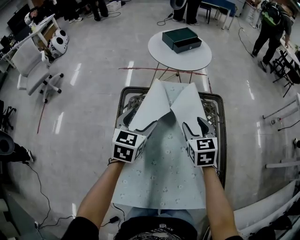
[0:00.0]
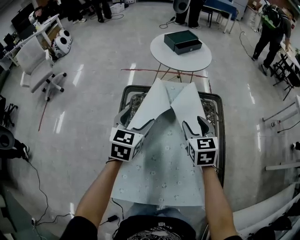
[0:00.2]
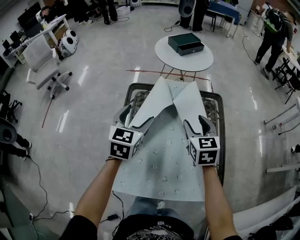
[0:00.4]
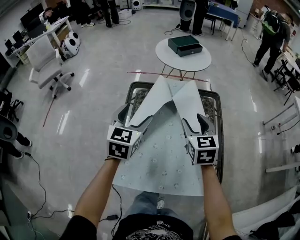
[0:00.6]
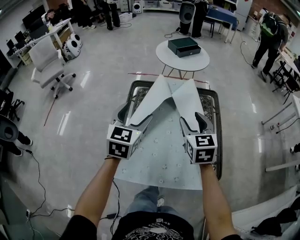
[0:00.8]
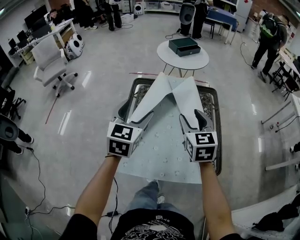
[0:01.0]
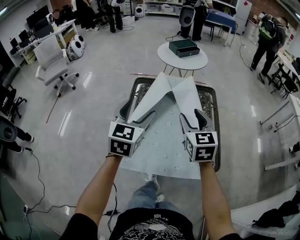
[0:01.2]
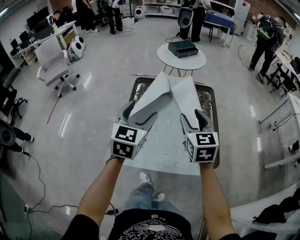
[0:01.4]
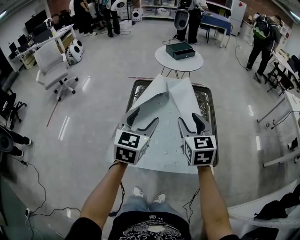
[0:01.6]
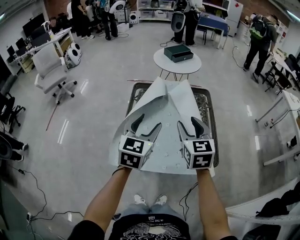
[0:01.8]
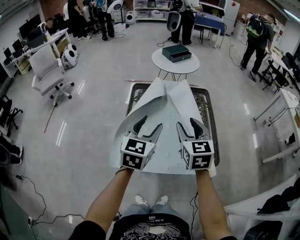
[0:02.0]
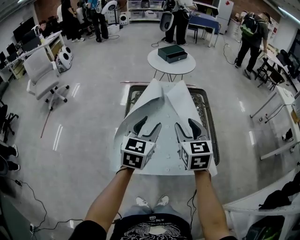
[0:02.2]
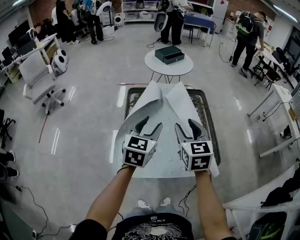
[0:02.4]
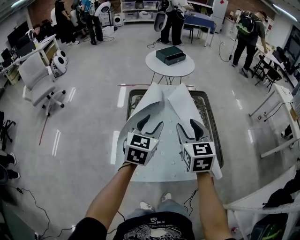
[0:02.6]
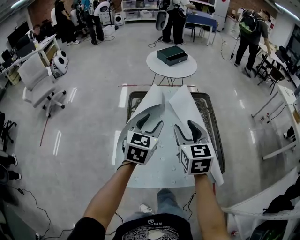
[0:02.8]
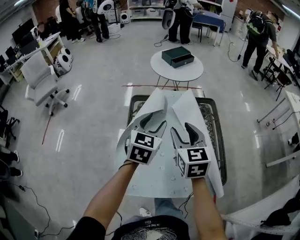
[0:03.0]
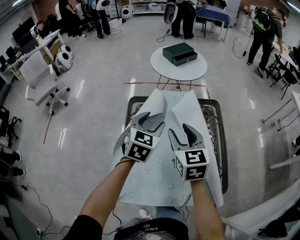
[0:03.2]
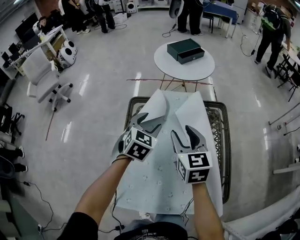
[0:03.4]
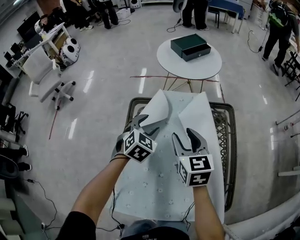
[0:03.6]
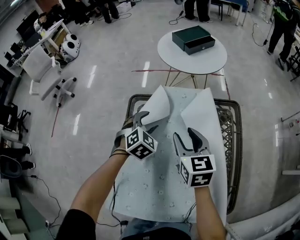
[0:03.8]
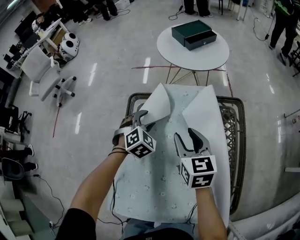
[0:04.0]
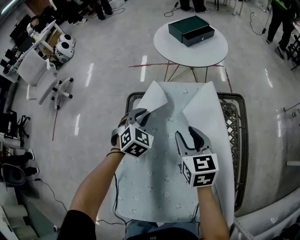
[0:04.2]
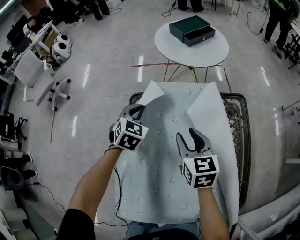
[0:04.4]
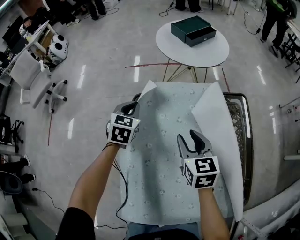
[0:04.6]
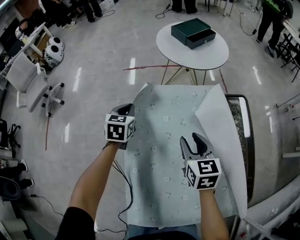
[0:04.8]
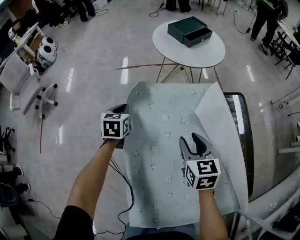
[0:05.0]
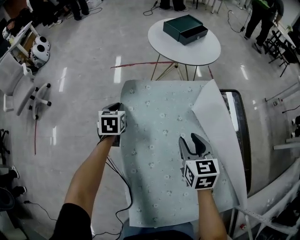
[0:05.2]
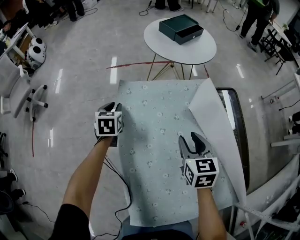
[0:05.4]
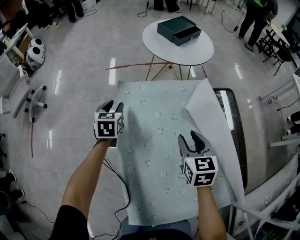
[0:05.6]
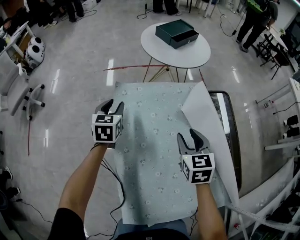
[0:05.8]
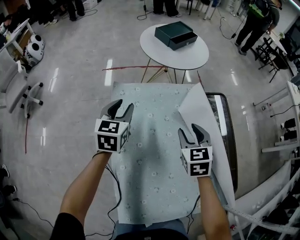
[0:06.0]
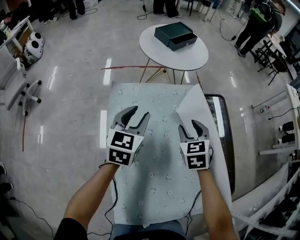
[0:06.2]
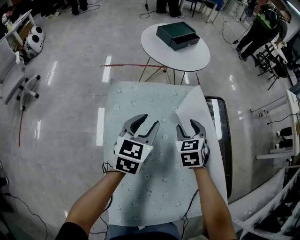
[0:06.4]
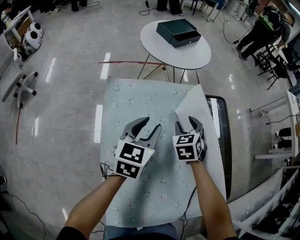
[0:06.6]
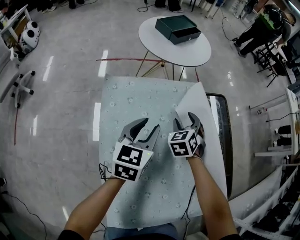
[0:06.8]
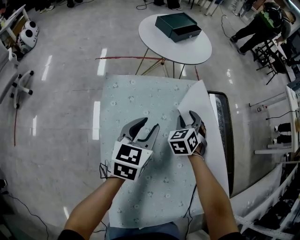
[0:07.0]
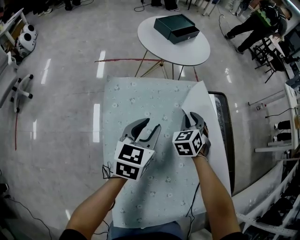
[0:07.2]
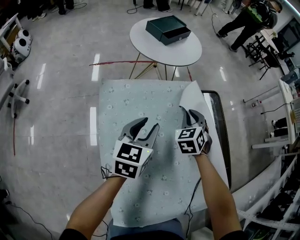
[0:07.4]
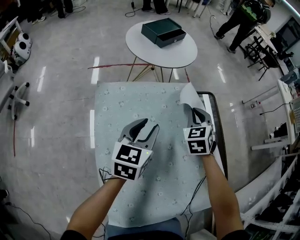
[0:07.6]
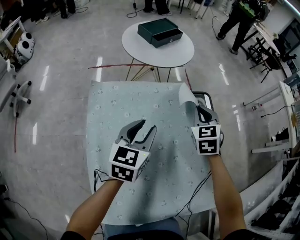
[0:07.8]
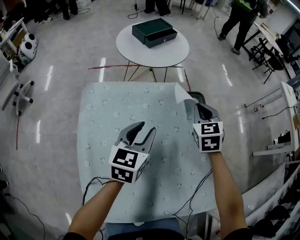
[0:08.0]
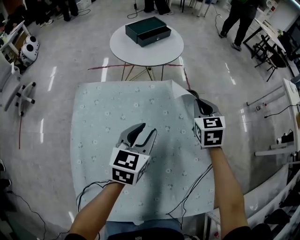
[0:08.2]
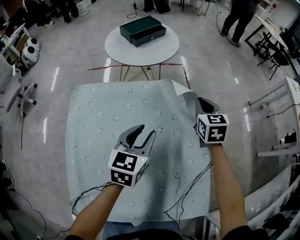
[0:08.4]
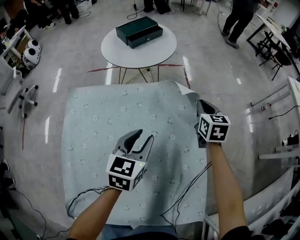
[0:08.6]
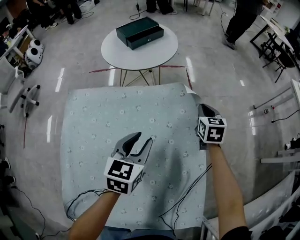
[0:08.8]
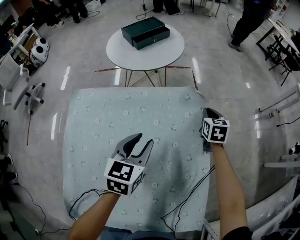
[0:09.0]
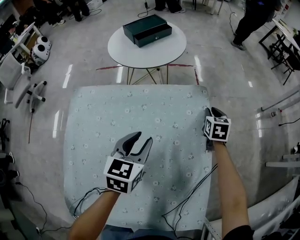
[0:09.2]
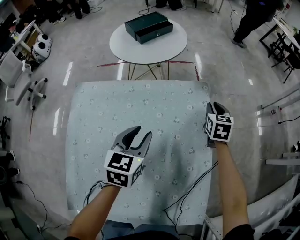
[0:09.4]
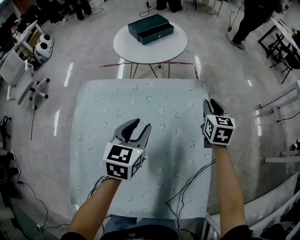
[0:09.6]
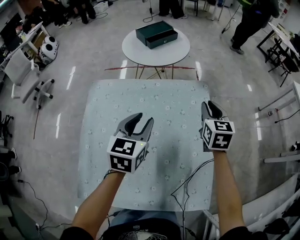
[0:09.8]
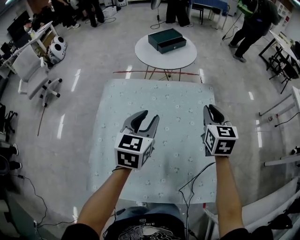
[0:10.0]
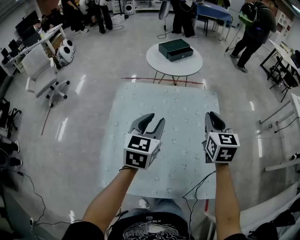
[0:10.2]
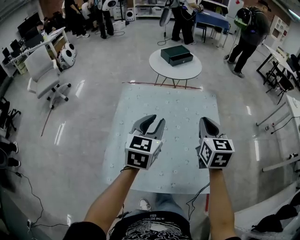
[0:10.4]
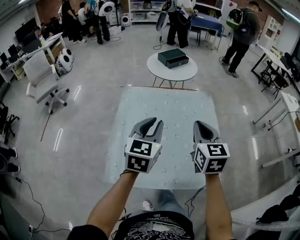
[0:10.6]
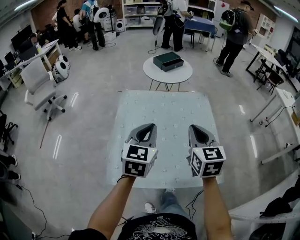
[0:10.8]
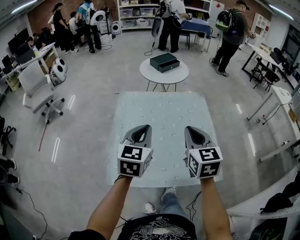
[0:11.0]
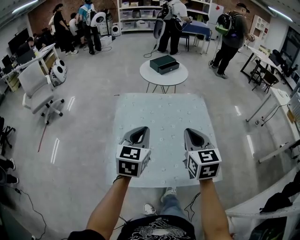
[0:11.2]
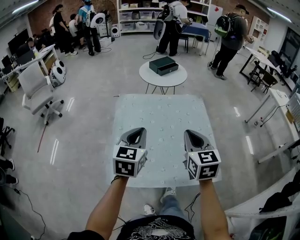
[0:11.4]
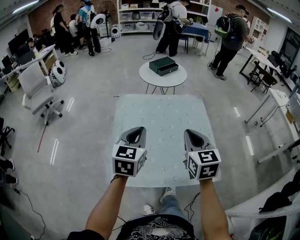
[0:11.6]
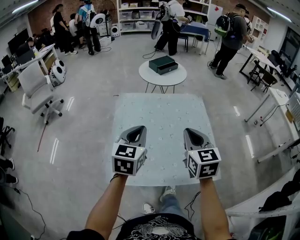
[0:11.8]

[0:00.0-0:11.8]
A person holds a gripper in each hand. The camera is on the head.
0:00.0 to 0:01.4: Both grippers move backward and upward, roughly 30 cm.
0:01.4 to 0:03.0: The left gripper shifts about 15 cm forward, while the right gripper shifts about 10 cm forward and to the left.
0:03.0 to 0:04.4: The right gripper travels downward and forward by approximately 25 cm; the left gripper is displaced forward and downward by roughly 30 cm, turns by some 20 degrees, and closes.
0:04.4 to 0:06.0: The right gripper swivels approximately 20 degrees. Meanwhile the left gripper shifts about 10 cm to the left and upward, turns by about 30 degrees, and opens up.
0:06.0 to 0:07.4: The left gripper shifts approximately 15 cm to the right. The right gripper is displaced forward by about 10 cm, rotates roughly 30 degrees, and closes.
0:07.4 to 0:08.8: The right gripper is displaced to the right and forward by roughly 35 cm, and changes its angle by some 30 degrees, while the left gripper shifts some 25 cm to the right.
0:08.8 to 0:10.4: Both grippers move backward, upward and to the left, roughly 40 cm.
0:10.4 to 0:11.8: The right gripper heads backward and to the left, covering some 15 cm. Meanwhile the left gripper moves backward, about 10 cm.

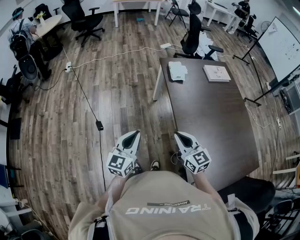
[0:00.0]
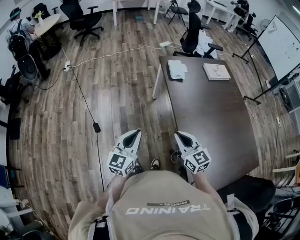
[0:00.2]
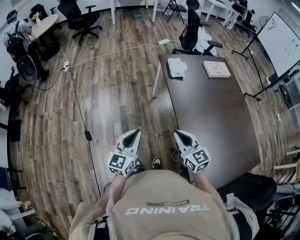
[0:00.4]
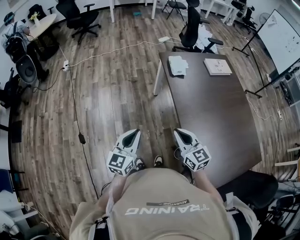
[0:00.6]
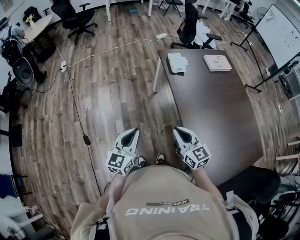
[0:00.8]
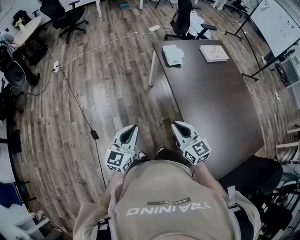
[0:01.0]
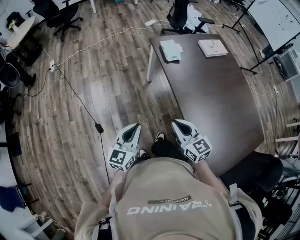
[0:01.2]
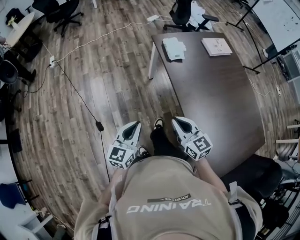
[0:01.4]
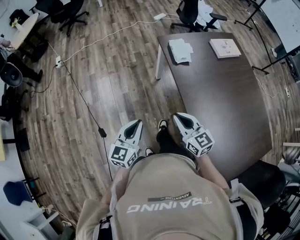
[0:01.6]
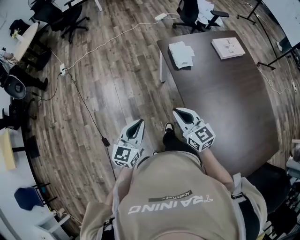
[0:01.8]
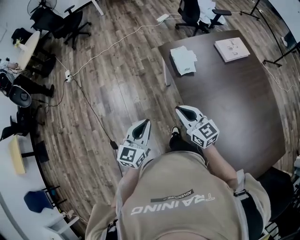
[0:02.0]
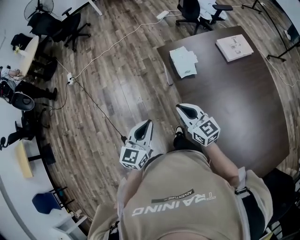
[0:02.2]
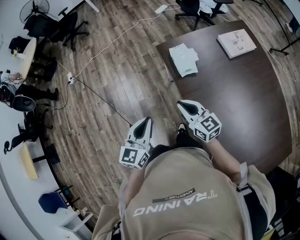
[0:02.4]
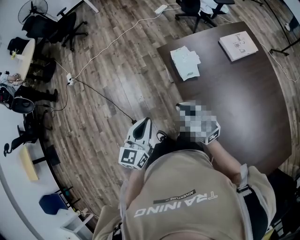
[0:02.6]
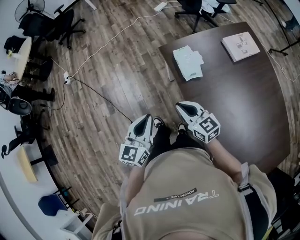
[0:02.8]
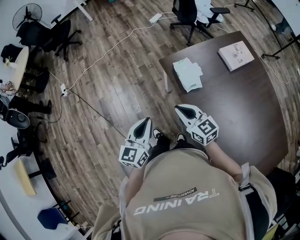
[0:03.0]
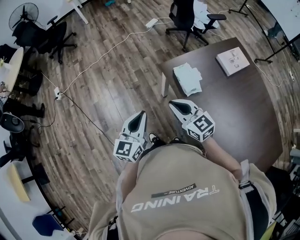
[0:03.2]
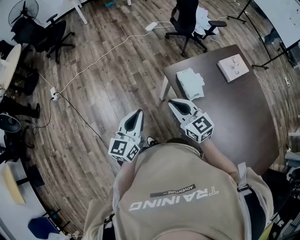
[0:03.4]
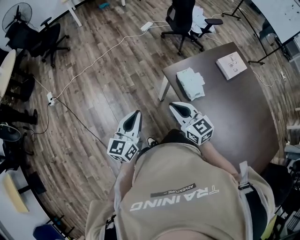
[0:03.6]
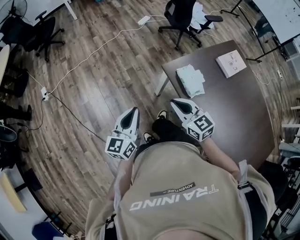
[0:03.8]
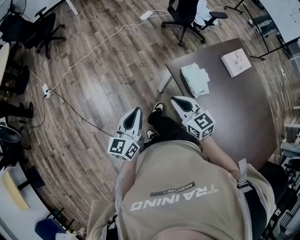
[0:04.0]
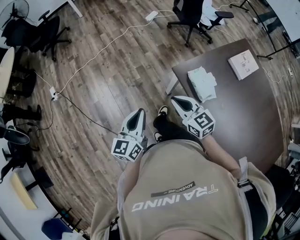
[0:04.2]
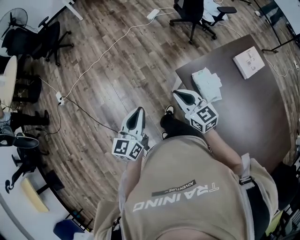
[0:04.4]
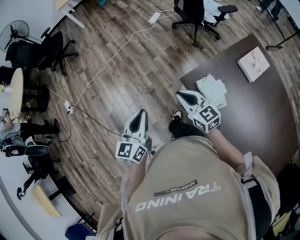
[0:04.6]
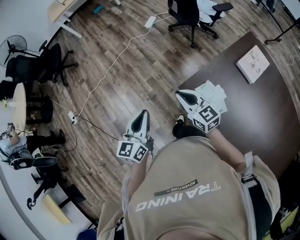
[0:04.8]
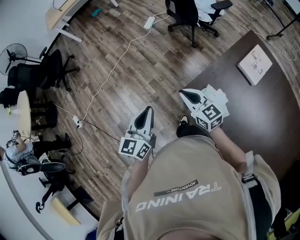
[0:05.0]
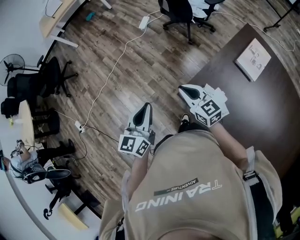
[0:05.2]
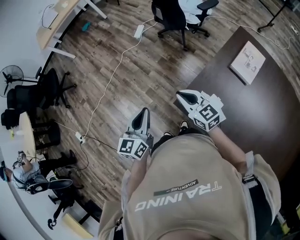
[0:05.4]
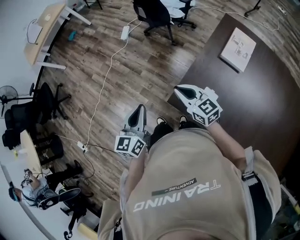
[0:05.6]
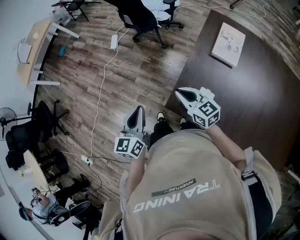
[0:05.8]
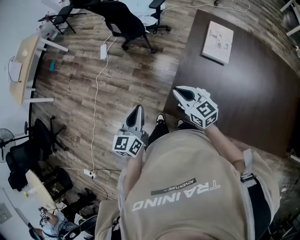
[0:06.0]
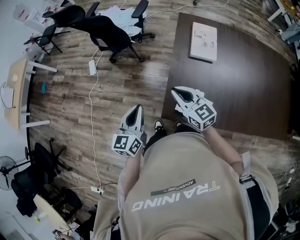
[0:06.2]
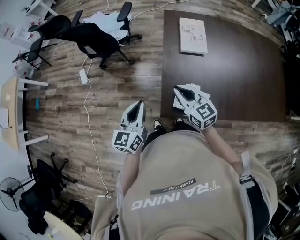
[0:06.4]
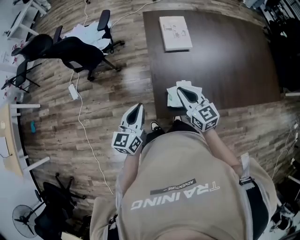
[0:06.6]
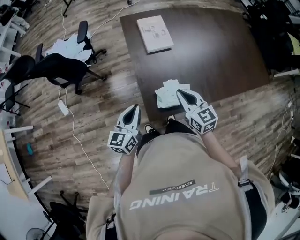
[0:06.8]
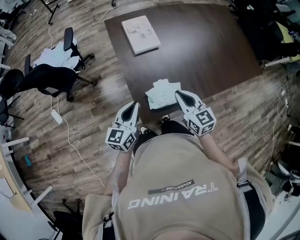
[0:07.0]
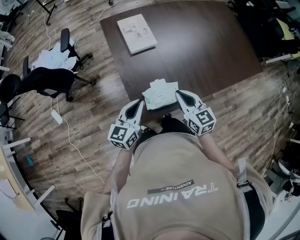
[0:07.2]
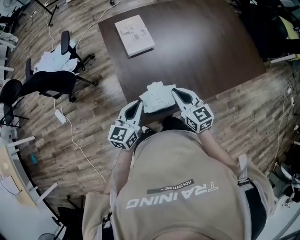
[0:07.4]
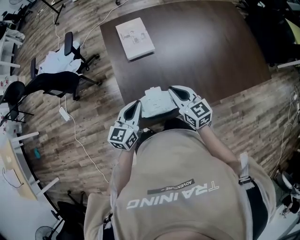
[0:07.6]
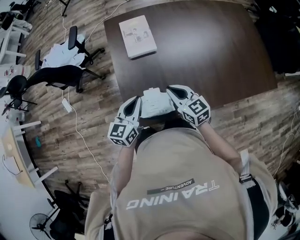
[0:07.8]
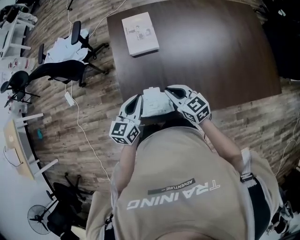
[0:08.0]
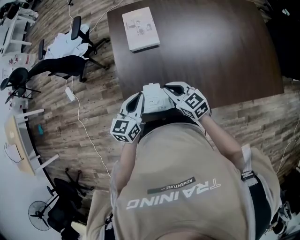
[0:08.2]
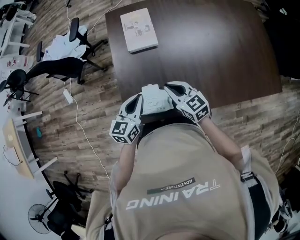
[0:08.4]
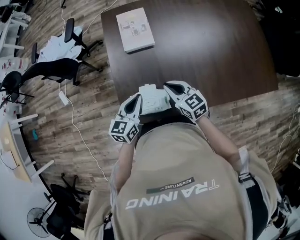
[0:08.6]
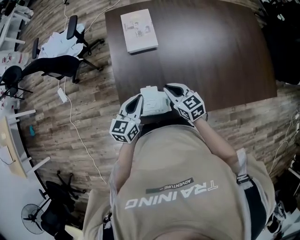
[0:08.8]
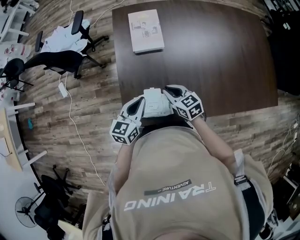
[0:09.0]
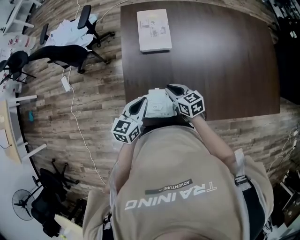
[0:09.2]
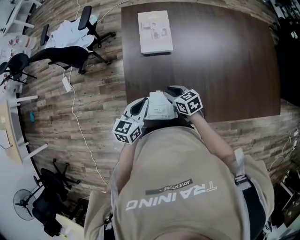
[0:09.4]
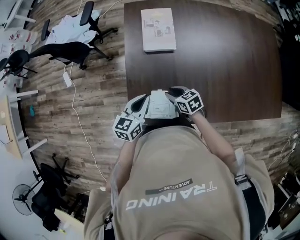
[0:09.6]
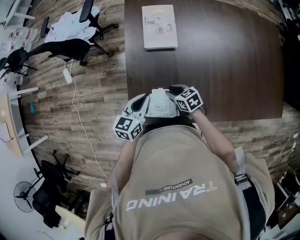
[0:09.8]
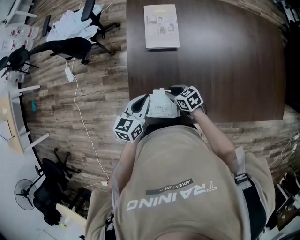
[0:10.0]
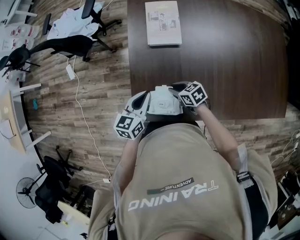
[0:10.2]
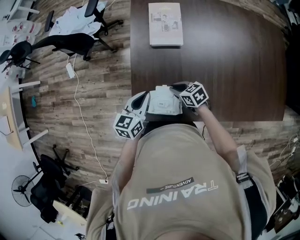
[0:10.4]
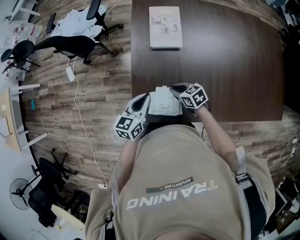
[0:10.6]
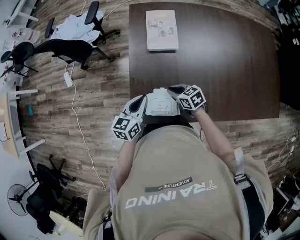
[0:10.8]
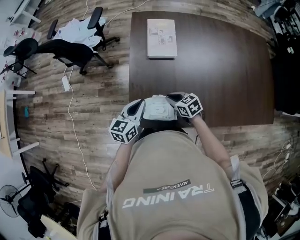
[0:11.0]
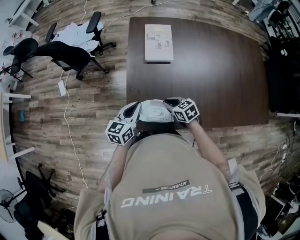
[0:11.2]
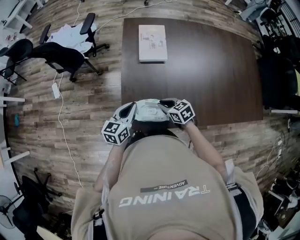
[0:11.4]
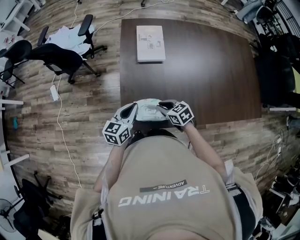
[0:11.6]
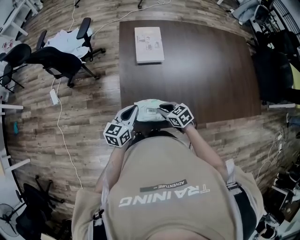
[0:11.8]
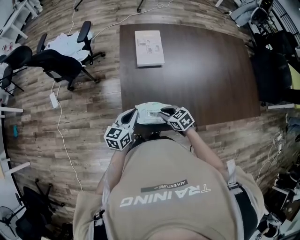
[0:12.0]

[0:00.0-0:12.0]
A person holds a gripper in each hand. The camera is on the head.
0:00.0 to 0:01.6: The two grippers go some 15 cm forward.
0:01.6 to 0:03.0: Both grippers move forward, approximately 25 cm.
0:03.0 to 0:04.4: Both grippers move forward and to the left, about 25 cm.
0:04.4 to 0:06.0: The right gripper changes place by approximately 25 cm, and swivels roughly 40 degrees. The left gripper changes place by about 35 cm, and turns by about 40 degrees.
0:06.0 to 0:07.6: The right gripper shifts by approximately 25 cm, and changes its angle by approximately 40 degrees. The left gripper ends up roughly 25 cm from where it was, and swivels some 50 degrees.
0:07.6 to 0:09.0: The right gripper travels downward by some 10 cm, and turns by some 20 degrees. The left gripper changes place by roughly 5 cm.
0:09.0 to 0:10.4: The right gripper goes approximately 5 cm downward, and turns by approximately 20 degrees.
0:10.4 to 0:12.0: The left gripper moves about 5 cm. Meanwhile the right gripper goes some 10 cm backward.
